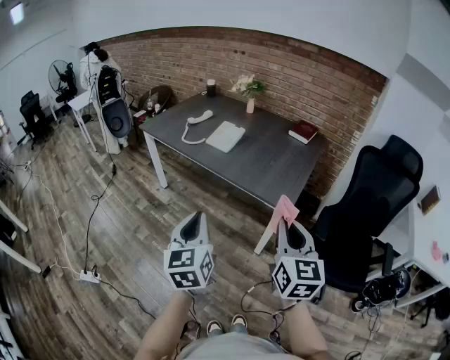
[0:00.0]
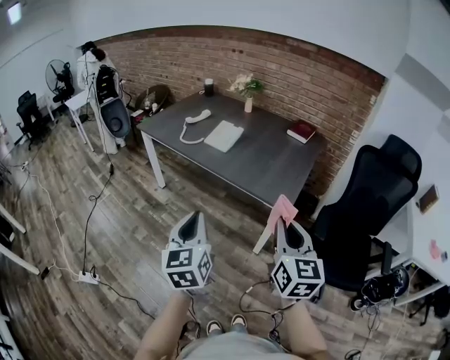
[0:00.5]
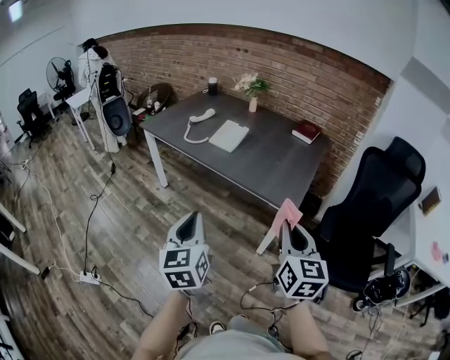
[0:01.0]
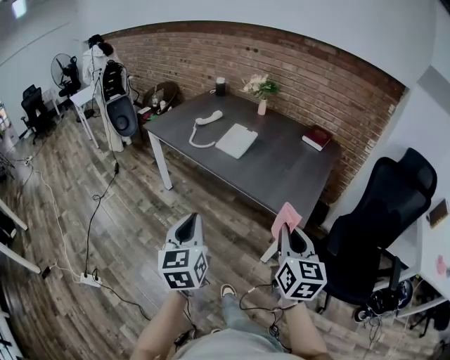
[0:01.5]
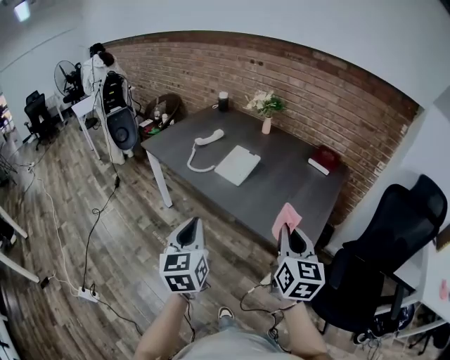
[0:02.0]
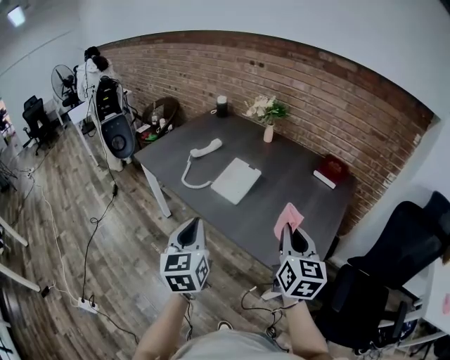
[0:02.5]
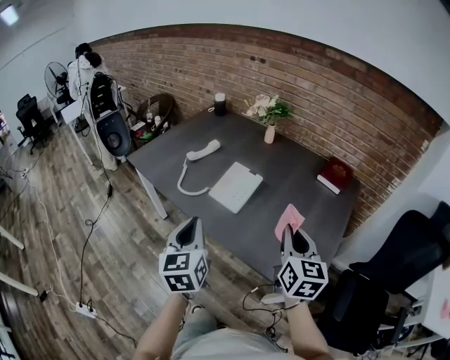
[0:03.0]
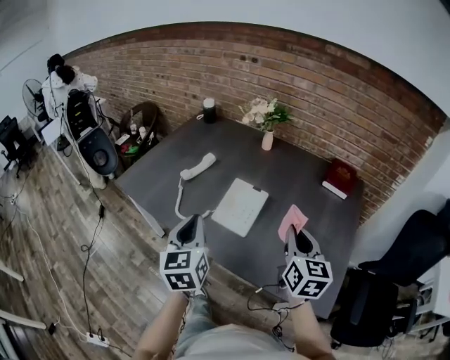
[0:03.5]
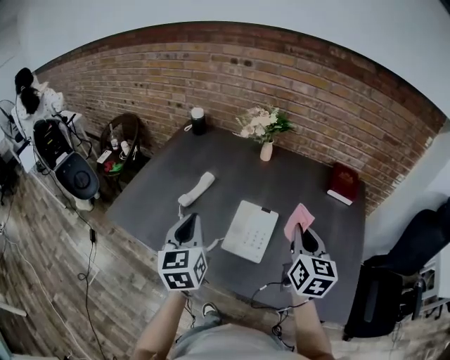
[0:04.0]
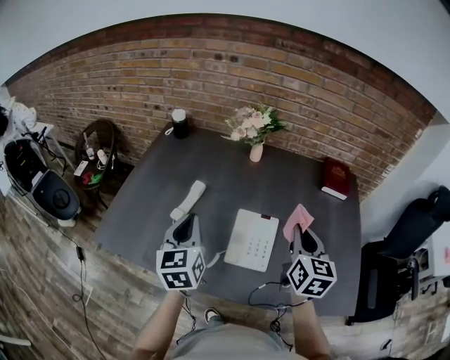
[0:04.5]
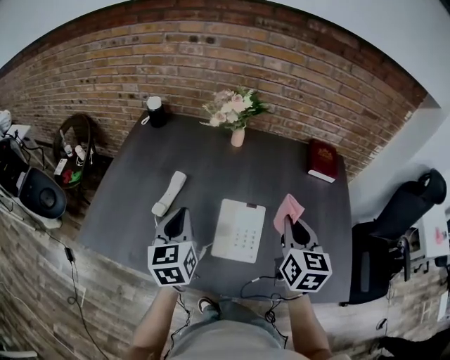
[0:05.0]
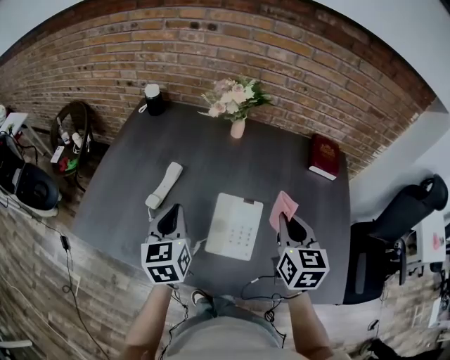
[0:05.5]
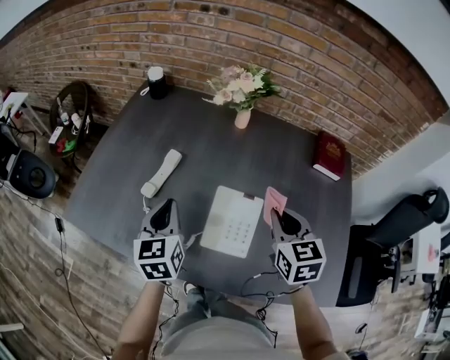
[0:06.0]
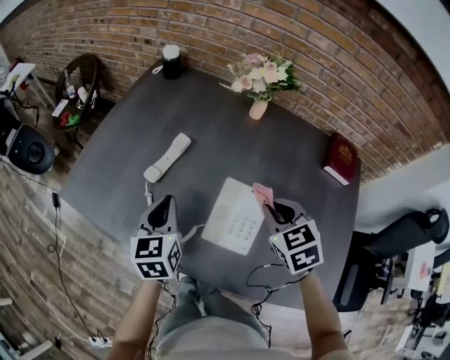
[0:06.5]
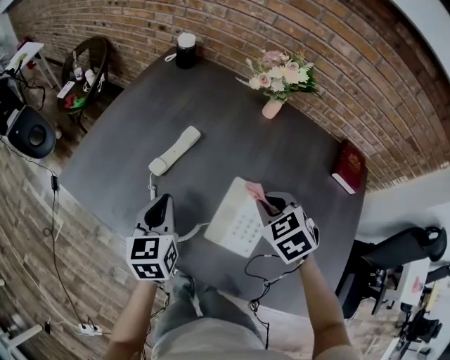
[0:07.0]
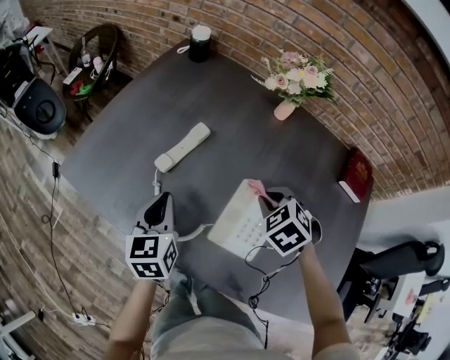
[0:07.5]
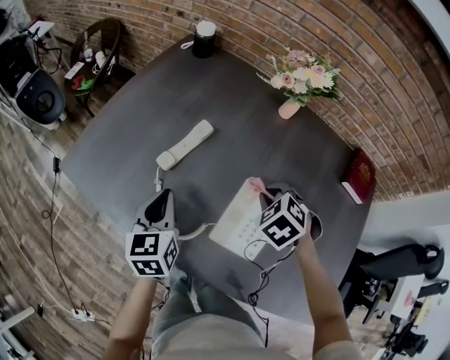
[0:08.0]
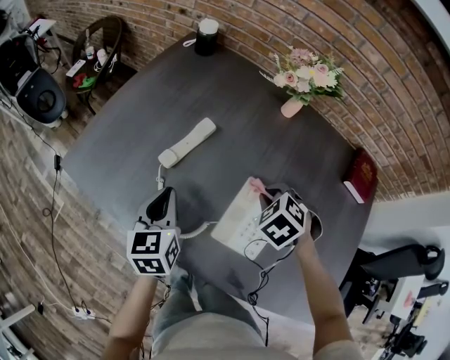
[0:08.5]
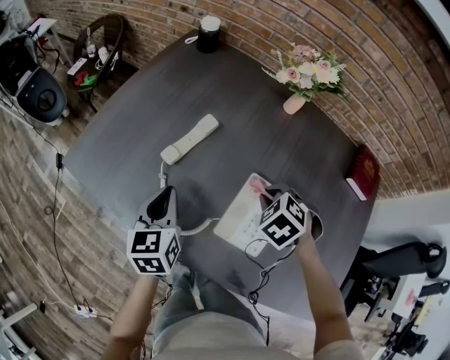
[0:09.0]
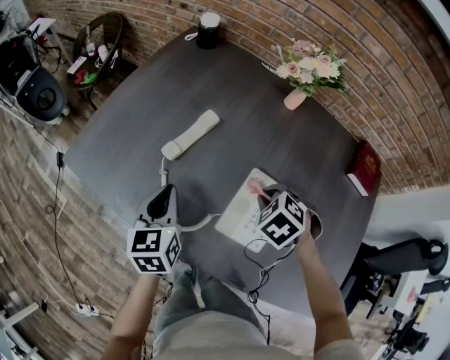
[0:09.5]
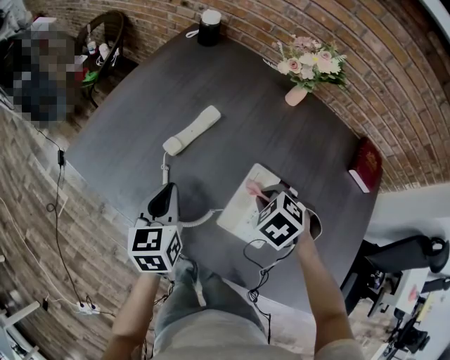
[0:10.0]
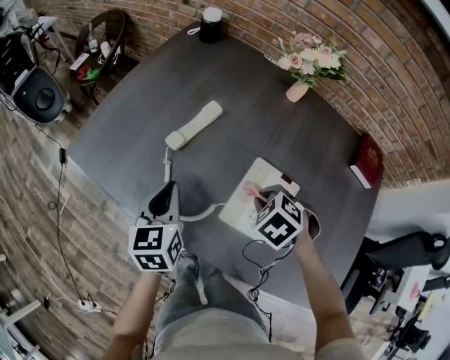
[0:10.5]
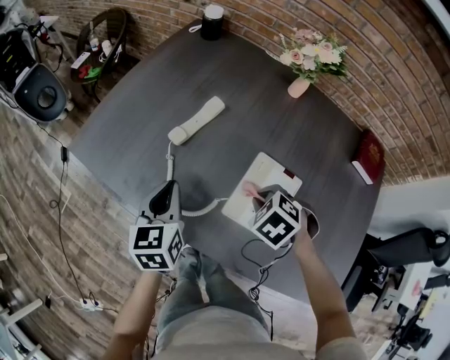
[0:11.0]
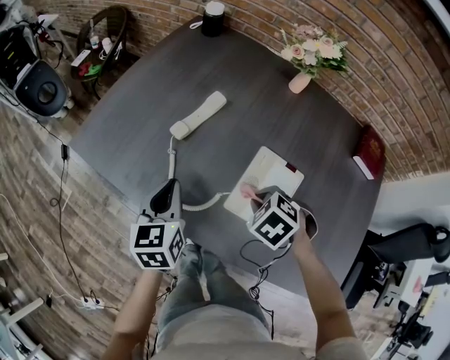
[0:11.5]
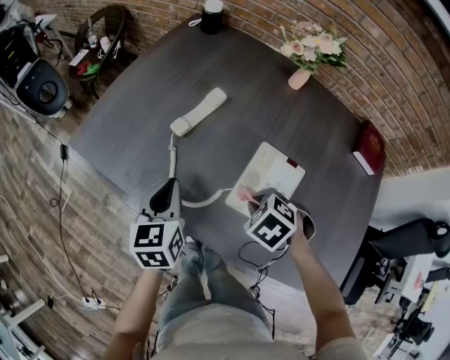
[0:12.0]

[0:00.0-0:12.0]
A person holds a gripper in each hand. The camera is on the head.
0:00.0 to 0:02.0: Both grippers move forward, approximately 20 cm.
0:02.0 to 0:04.0: The pair of grippers is taken forward, about 40 cm.
0:04.0 to 0:06.0: Both grippers move forward and downward, roughly 10 cm. The right gripper turns by some 20 degrees.
0:06.0 to 0:08.0: The right gripper moves downward, forward and to the left, roughly 20 cm, and points its fingers approximately 40 degrees further downward. The left gripper goes about 10 cm downward and to the left.
0:08.0 to 0:10.0: The right gripper moves approximately 5 cm.
0:10.0 to 0:12.0: The right gripper ends up roughly 10 cm from where it was.

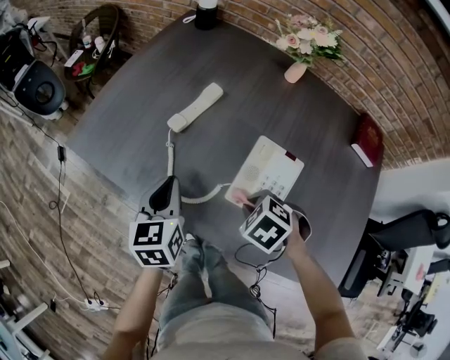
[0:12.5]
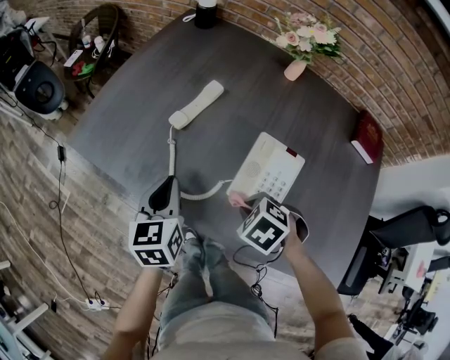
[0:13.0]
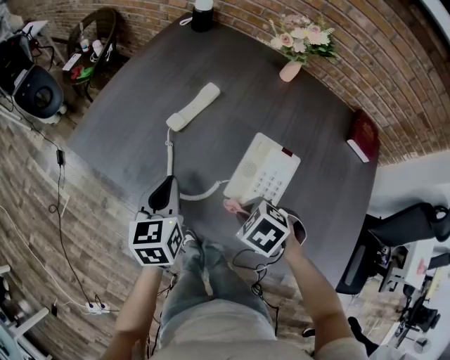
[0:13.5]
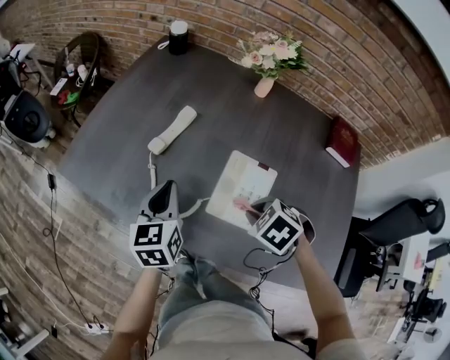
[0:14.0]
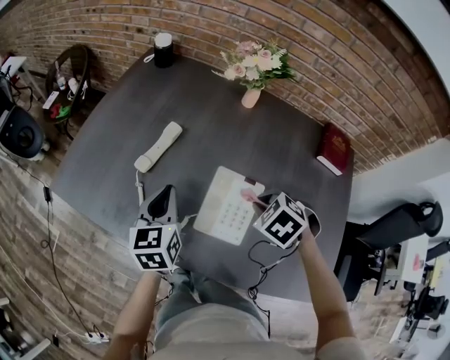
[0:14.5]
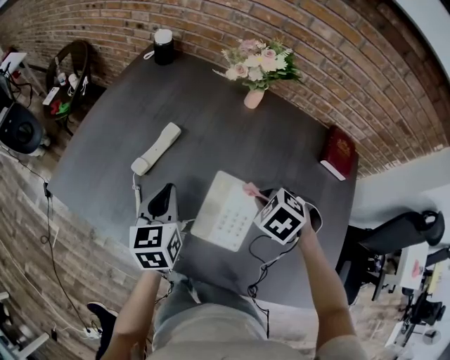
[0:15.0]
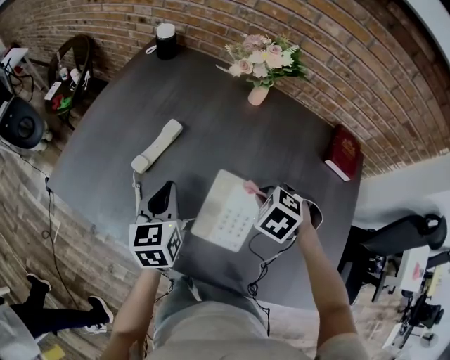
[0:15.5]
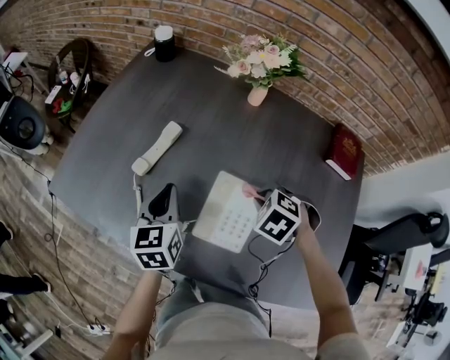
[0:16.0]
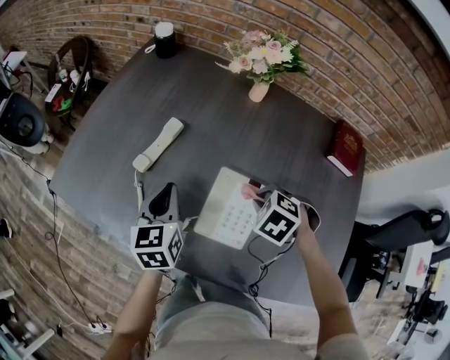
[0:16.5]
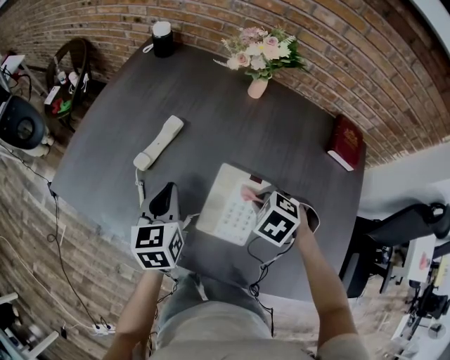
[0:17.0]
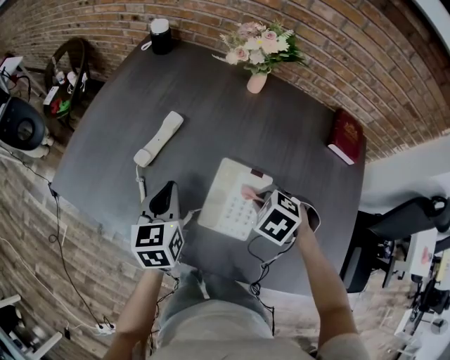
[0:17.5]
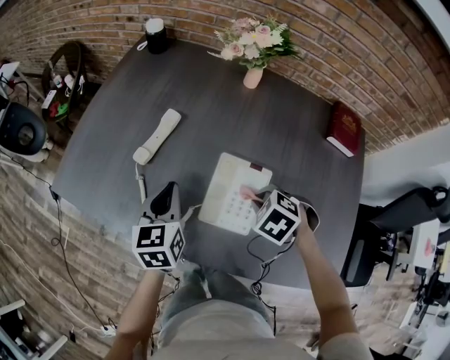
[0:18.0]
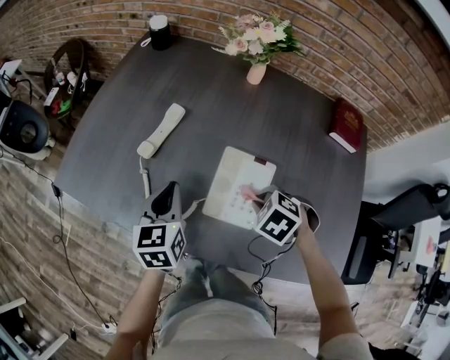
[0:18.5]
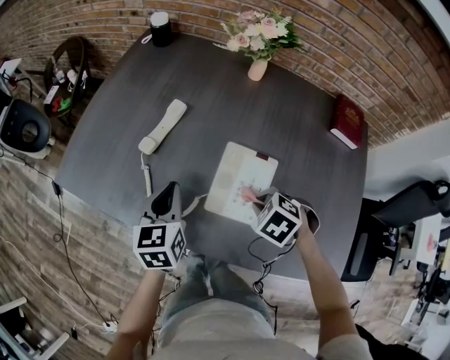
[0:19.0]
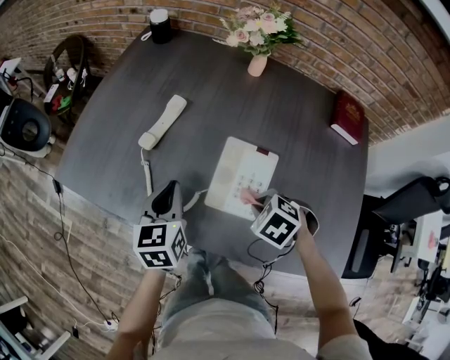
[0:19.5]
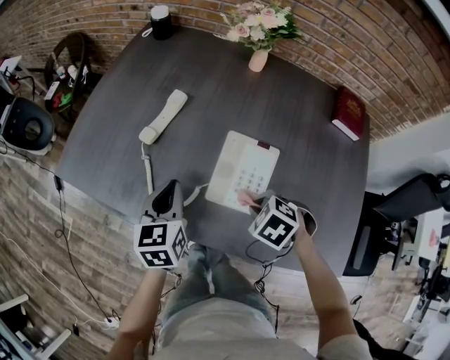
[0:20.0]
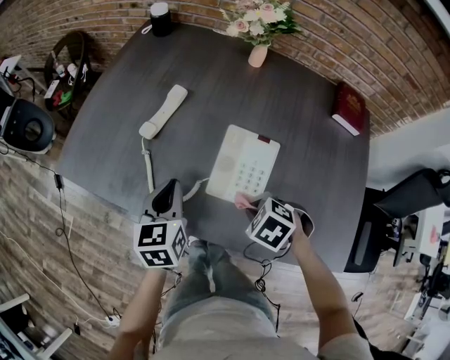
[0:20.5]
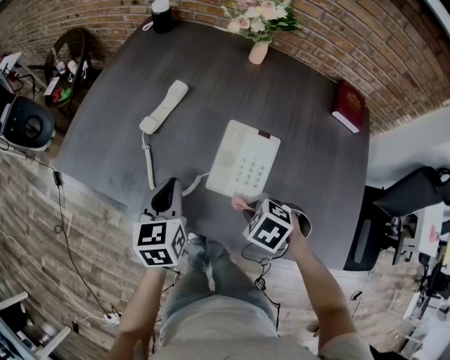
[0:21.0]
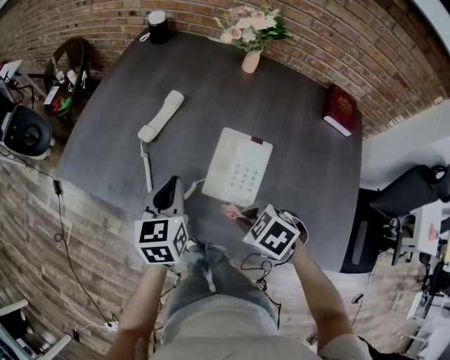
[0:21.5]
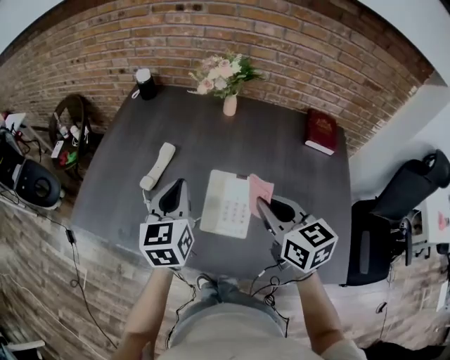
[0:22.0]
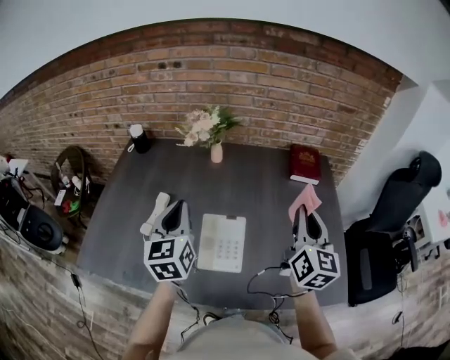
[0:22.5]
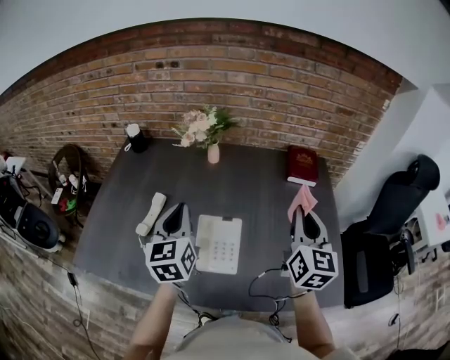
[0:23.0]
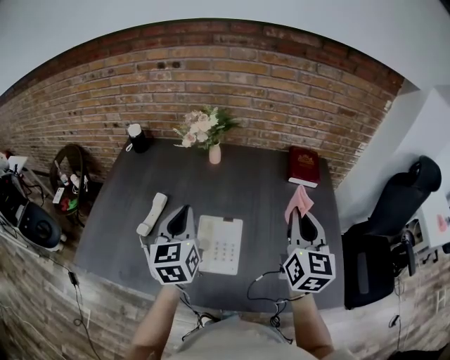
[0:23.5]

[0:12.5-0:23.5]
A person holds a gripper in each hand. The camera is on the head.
0:12.5 to 0:14.5: The left gripper moves approximately 10 cm. The right gripper ends up approximately 15 cm from where it was.
0:14.5 to 0:16.0: The right gripper ends up roughly 5 cm from where it was.
0:16.0 to 0:18.0: The right gripper shifts by some 5 cm.
0:18.0 to 0:20.0: The right gripper changes place by roughly 10 cm. Meanwhile the left gripper changes place by about 5 cm.
0:20.0 to 0:21.5: The right gripper shifts by roughly 5 cm.
0:21.5 to 0:23.5: The left gripper is displaced upward by roughly 15 cm. The right gripper is displaced upward by roughly 25 cm, and points its fingers roughly 70 degrees further upward.

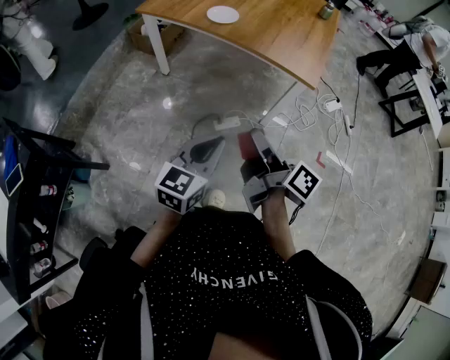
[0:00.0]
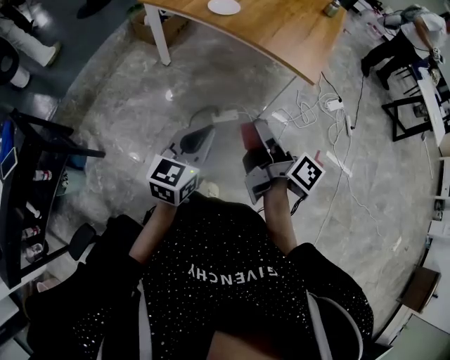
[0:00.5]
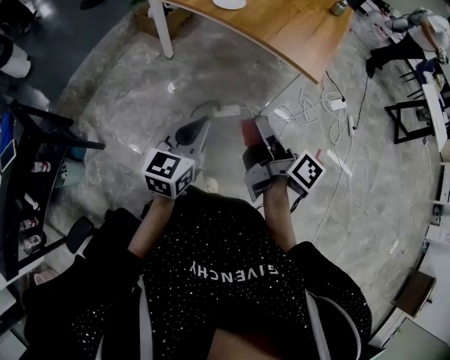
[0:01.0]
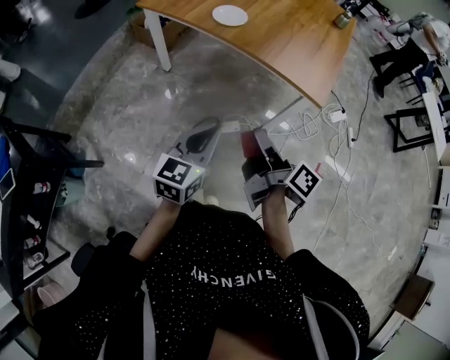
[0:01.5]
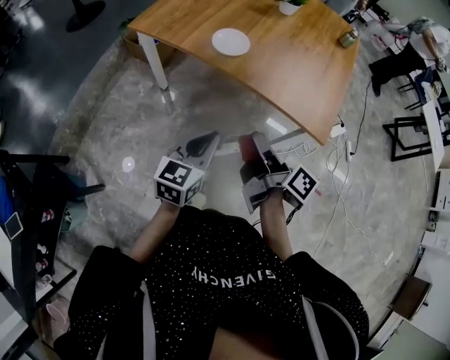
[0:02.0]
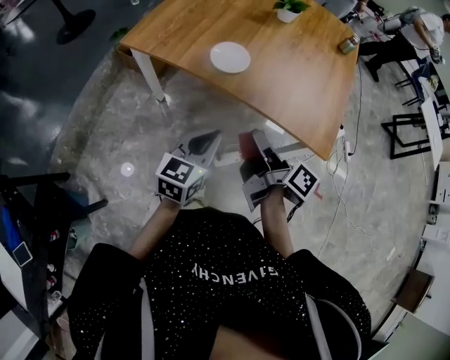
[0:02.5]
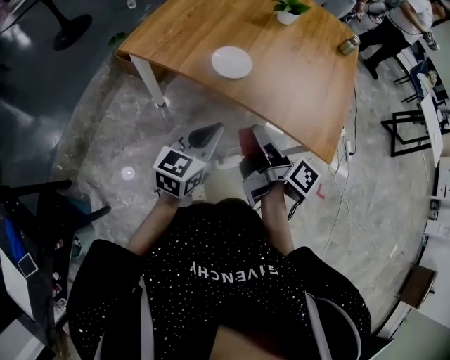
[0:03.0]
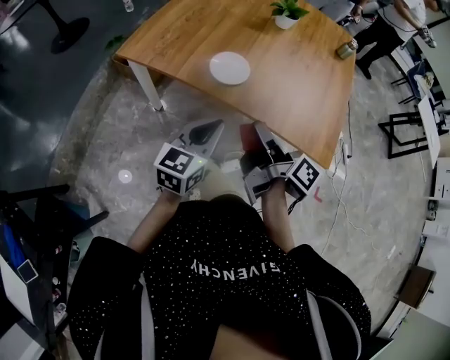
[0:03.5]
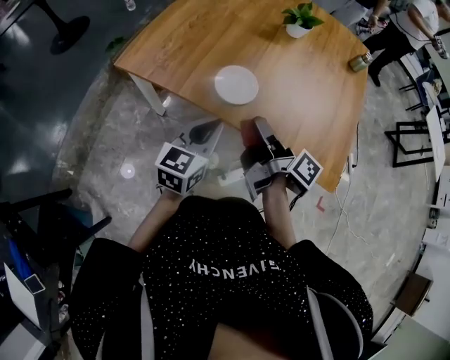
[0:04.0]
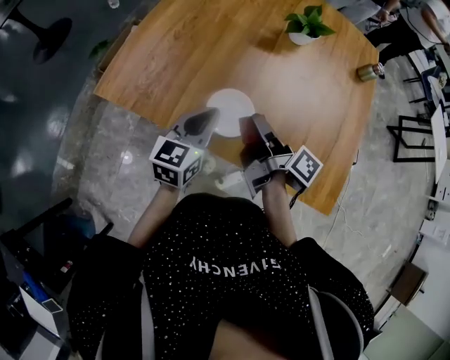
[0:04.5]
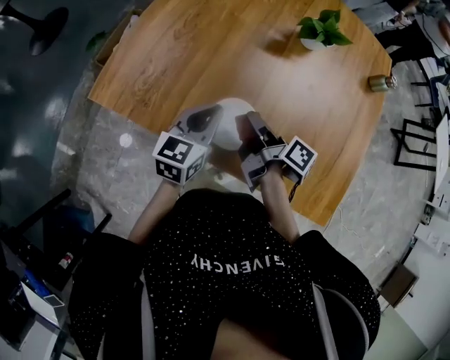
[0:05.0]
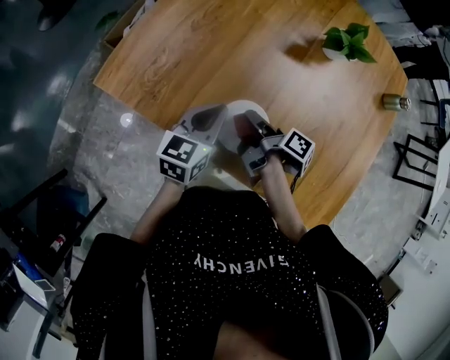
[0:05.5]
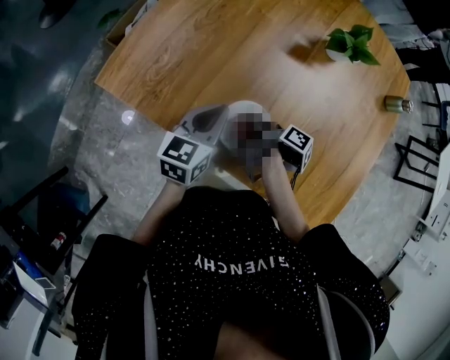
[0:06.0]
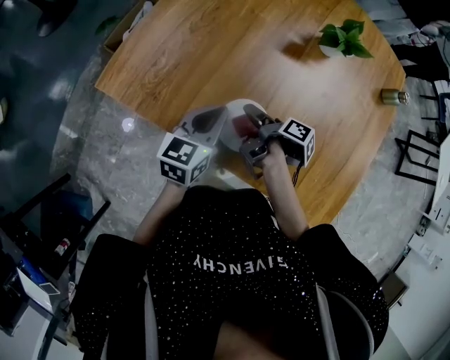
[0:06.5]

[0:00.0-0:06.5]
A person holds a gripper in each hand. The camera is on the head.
0:00.0 to 0:02.0: The left gripper changes place by approximately 25 cm.
0:02.0 to 0:04.5: The left gripper changes place by some 40 cm.
0:04.5 to 0:06.5: The left gripper ends up roughly 10 cm from where it was.
